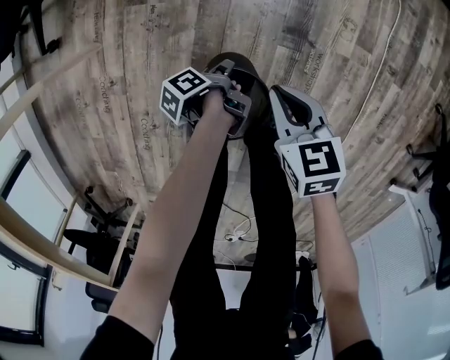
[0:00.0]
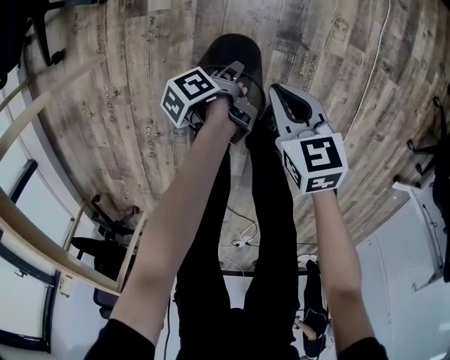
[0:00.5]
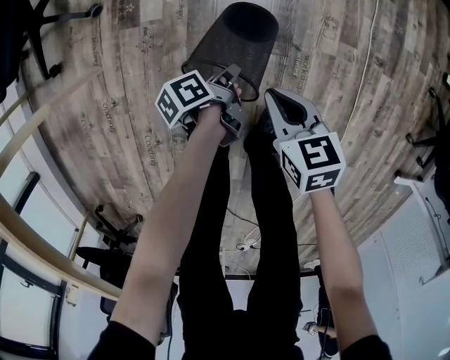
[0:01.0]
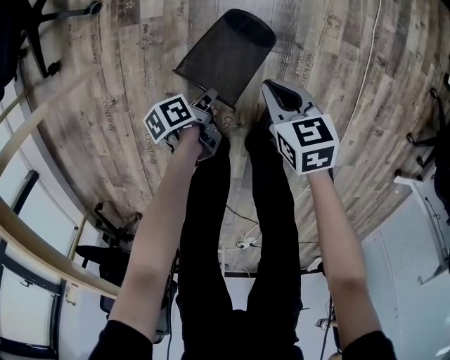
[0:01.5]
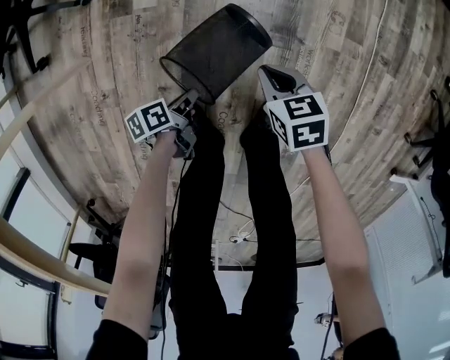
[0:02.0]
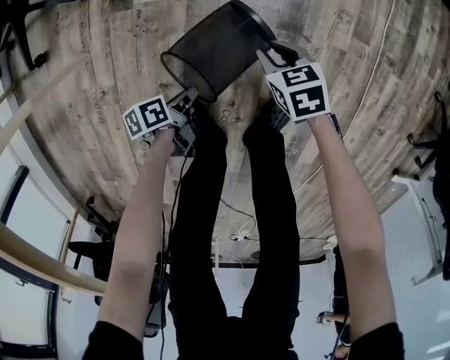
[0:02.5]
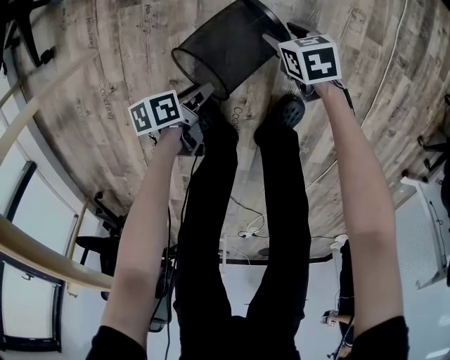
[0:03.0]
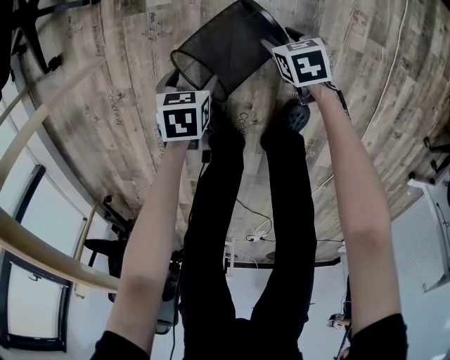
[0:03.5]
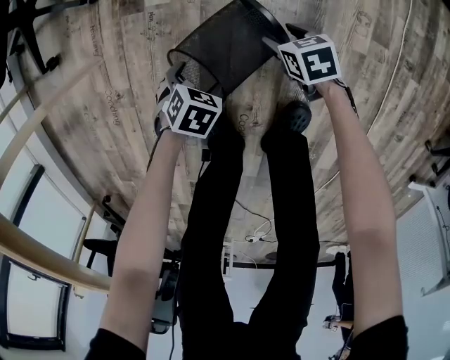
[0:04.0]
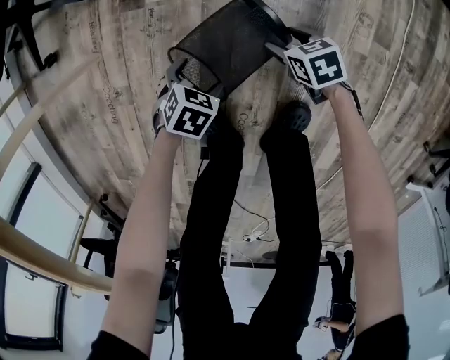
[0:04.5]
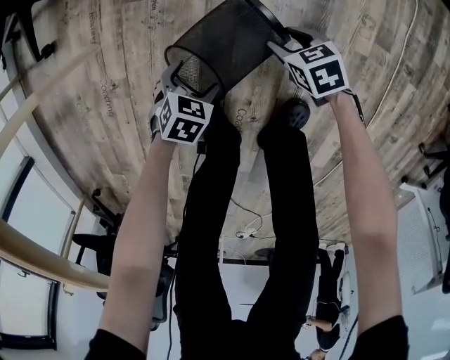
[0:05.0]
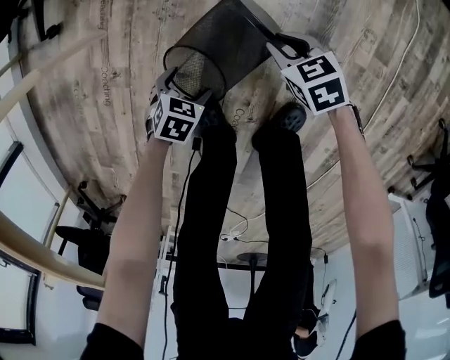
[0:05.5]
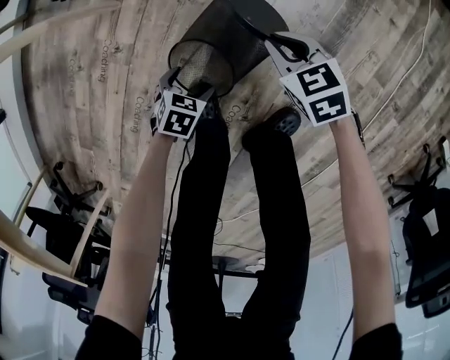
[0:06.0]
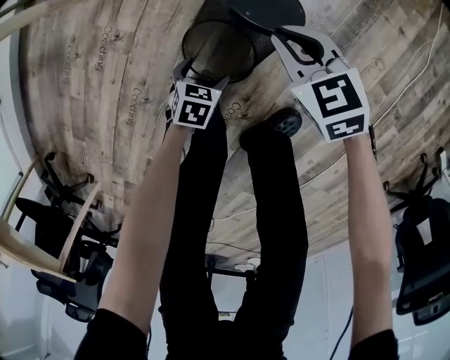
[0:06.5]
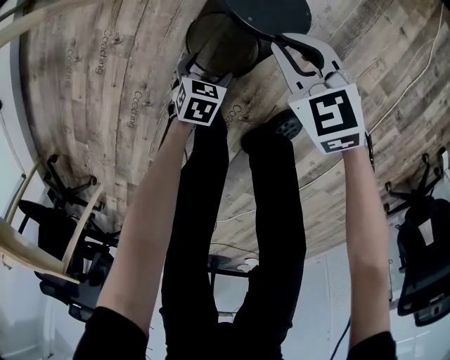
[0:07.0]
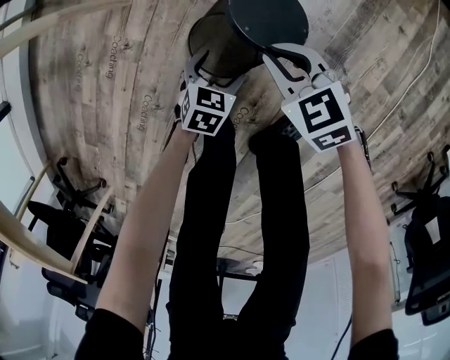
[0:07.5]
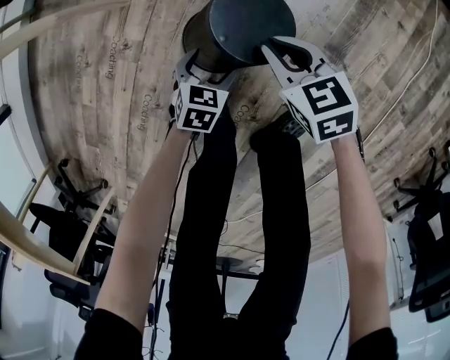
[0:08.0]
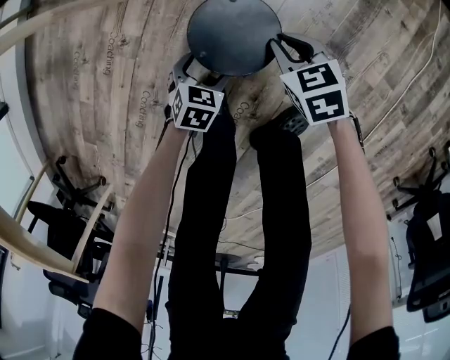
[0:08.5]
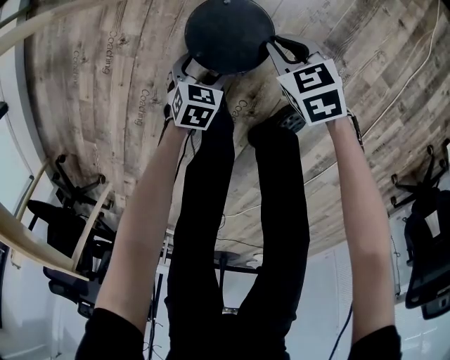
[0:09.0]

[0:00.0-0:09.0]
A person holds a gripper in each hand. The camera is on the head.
0:00.0 to 0:02.0: The left gripper travels to the left and backward by about 10 cm, and turns by about 40 degrees, while the right gripper is displaced downward by roughly 10 cm.
0:02.0 to 0:04.5: The right gripper heads downward, covering roughly 15 cm, and opens up, while the left gripper shifts by roughly 5 cm, rolls clockwise, seen from behind, by roughly 70 degrees, and opens.
0:04.5 to 0:07.0: The right gripper moves upward, about 15 cm, turns by roughly 40 degrees, and closes; the left gripper shifts by roughly 10 cm, and swivels roughly 30 degrees.
0:07.0 to 0:09.0: The right gripper shifts about 5 cm downward.

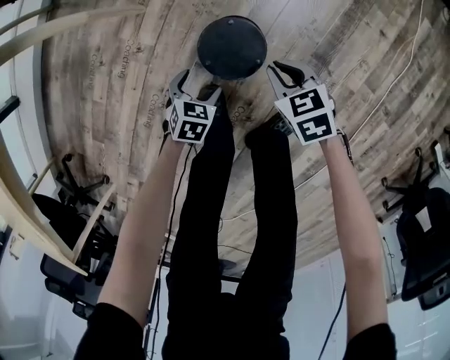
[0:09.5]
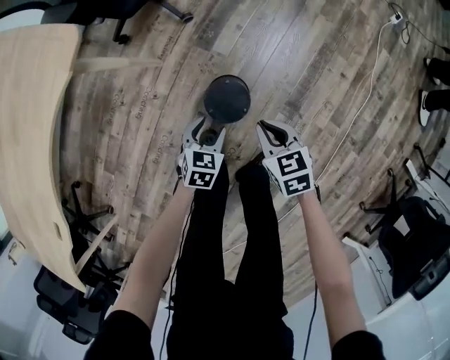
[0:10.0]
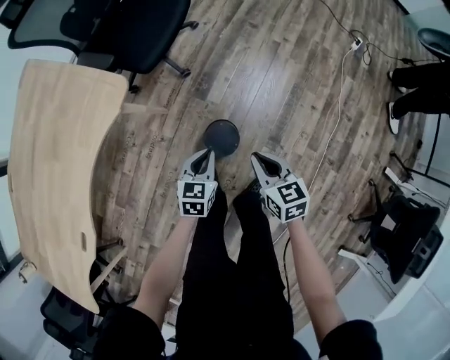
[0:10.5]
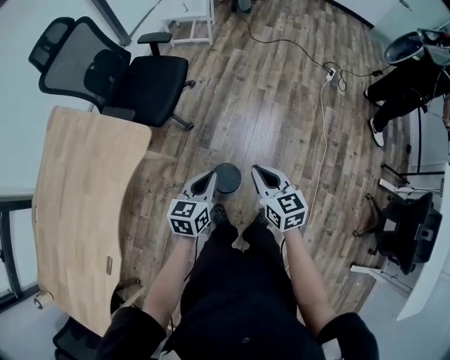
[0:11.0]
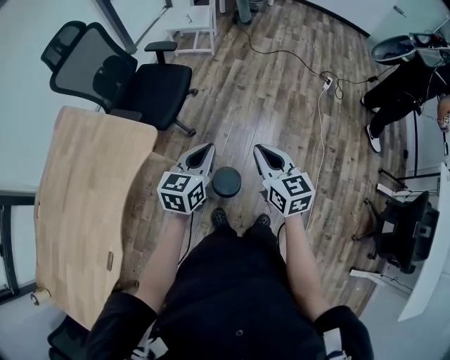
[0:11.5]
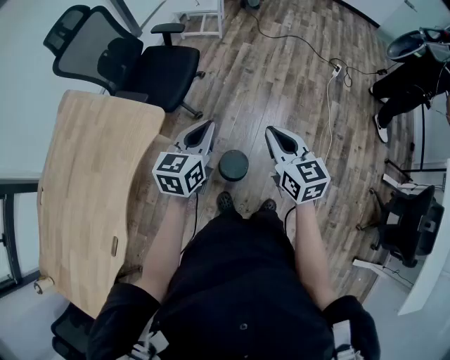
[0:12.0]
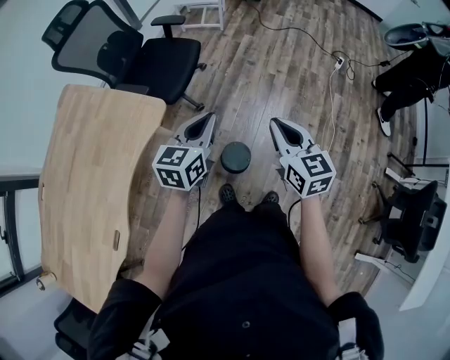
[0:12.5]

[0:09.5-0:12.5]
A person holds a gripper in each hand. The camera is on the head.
0:09.5 to 0:11.0: Both grippers move upward, some 50 cm. The right gripper rotates approximately 40 degrees. Meanwhile the left gripper angles its fingers upward, by about 40 degrees, and closes its fingers.
0:11.0 to 0:12.5: The grippers both shift upward by some 10 cm.

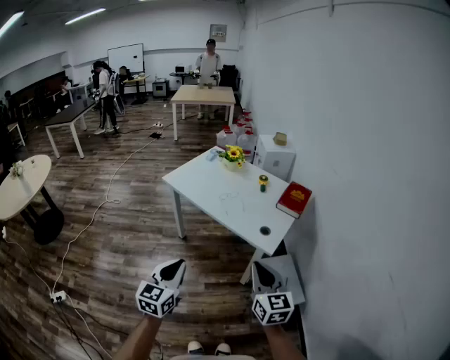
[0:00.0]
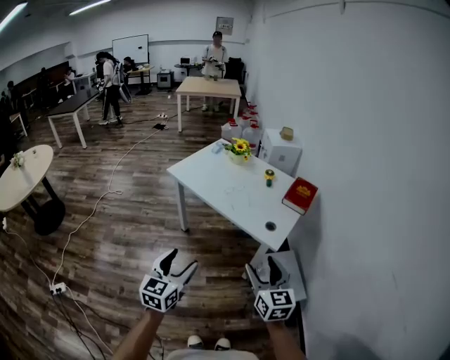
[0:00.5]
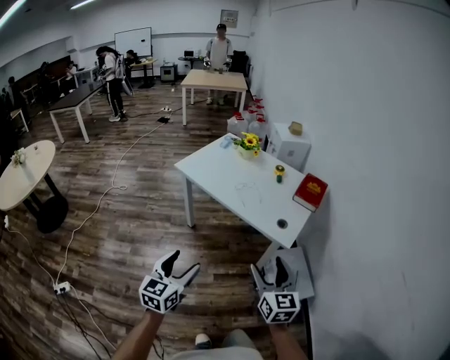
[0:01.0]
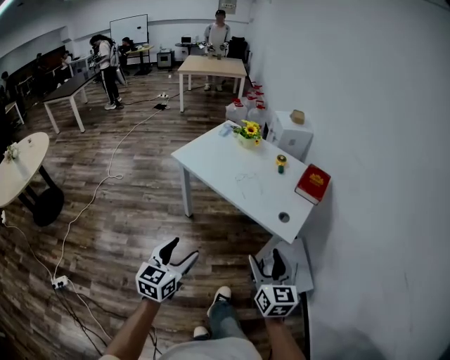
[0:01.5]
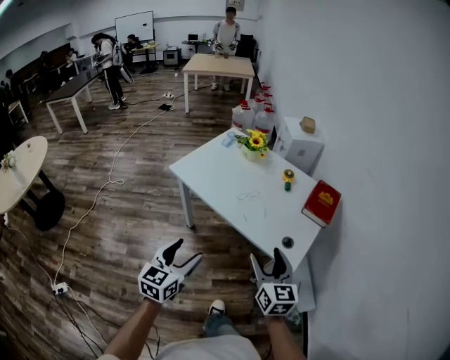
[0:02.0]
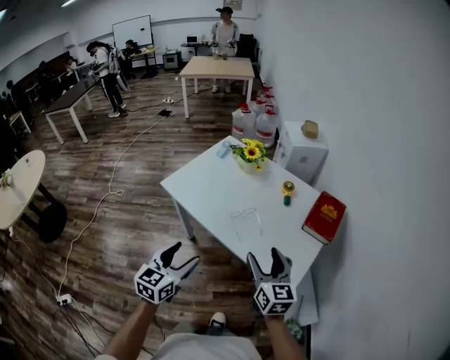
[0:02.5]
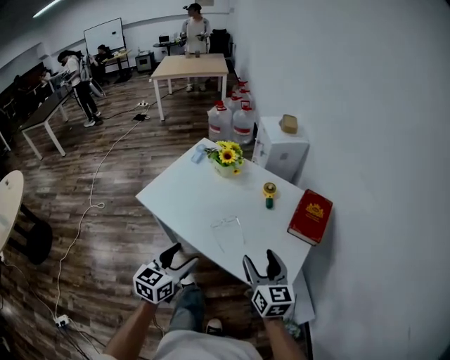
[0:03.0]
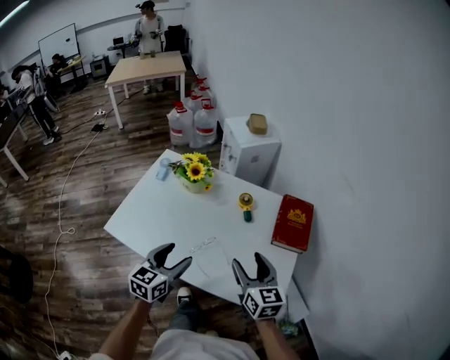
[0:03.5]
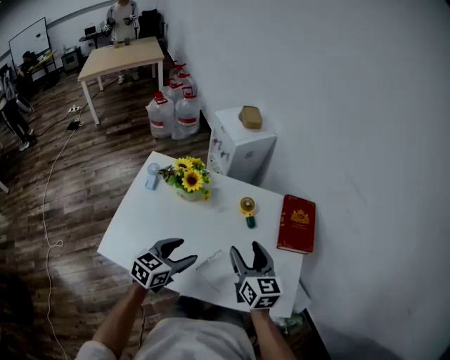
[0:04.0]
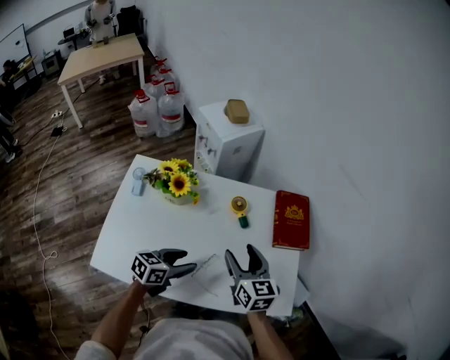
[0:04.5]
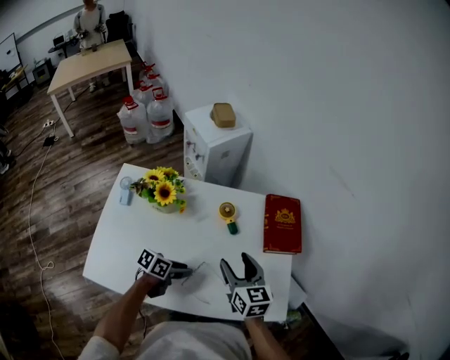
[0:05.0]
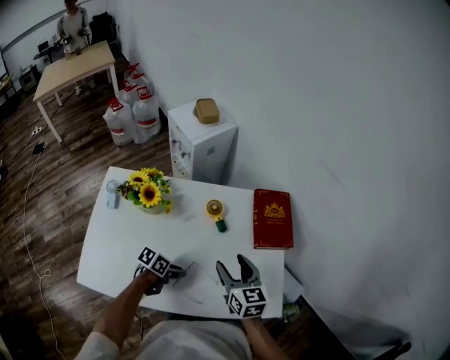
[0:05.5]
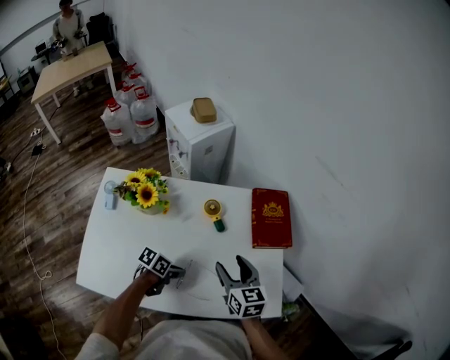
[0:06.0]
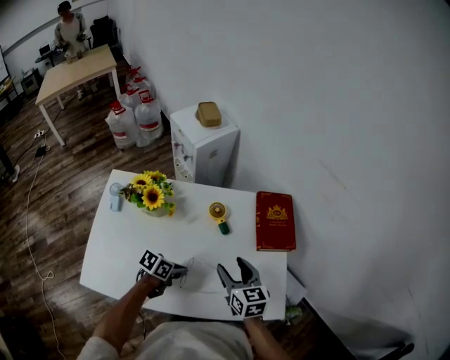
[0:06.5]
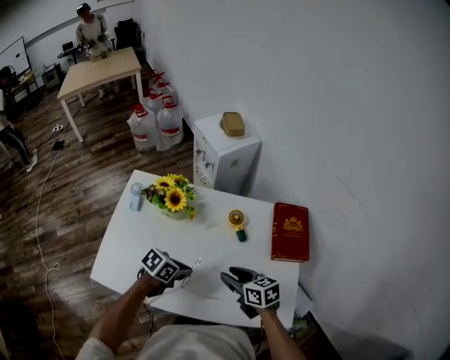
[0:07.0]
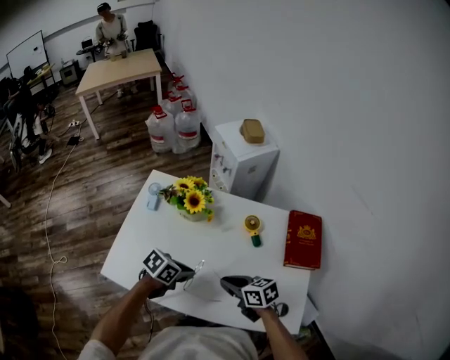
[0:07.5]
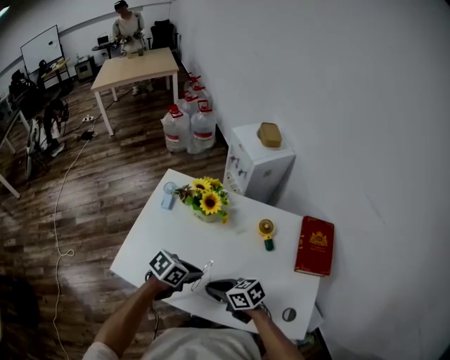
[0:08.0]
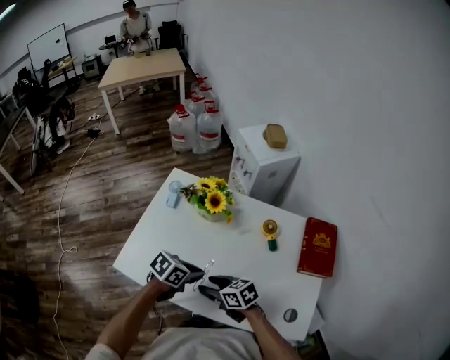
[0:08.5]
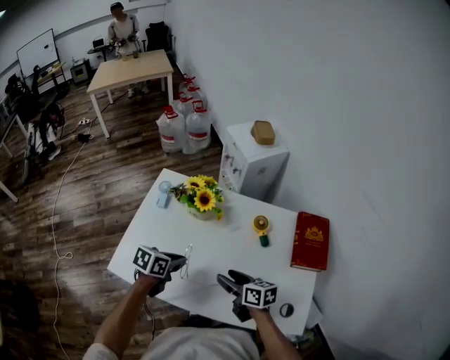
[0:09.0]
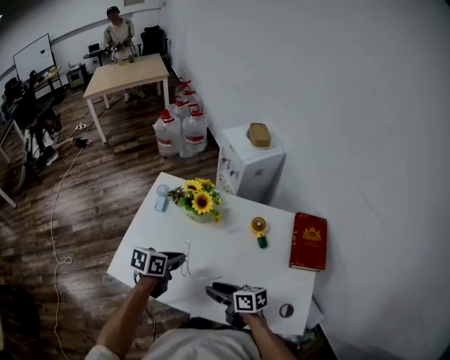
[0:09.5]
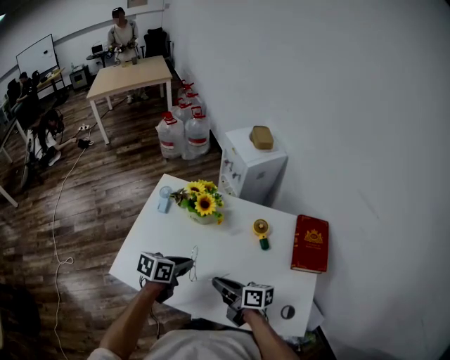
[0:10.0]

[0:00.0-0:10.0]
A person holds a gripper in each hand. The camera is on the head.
0:00.0 to 0:02.0: Both grippers move forward, some 25 cm. The right gripper opens up. Meanwhile the left gripper opens its fingers.
0:02.0 to 0:04.0: Both grippers are carried about 50 cm. The left gripper rotates approximately 40 degrees. The right gripper changes its angle by about 20 degrees.
0:04.0 to 0:06.0: The left gripper moves downward, some 20 cm, turns by about 50 degrees, and closes up, while the right gripper changes place by some 10 cm.
0:06.0 to 0:08.0: The right gripper shifts by approximately 25 cm, rotates some 60 degrees, and closes, while the left gripper changes place by approximately 15 cm.
0:08.0 to 0:10.0: The right gripper turns by roughly 30 degrees, and opens, then closes again; the left gripper moves approximately 5 cm, and changes its angle by some 20 degrees.

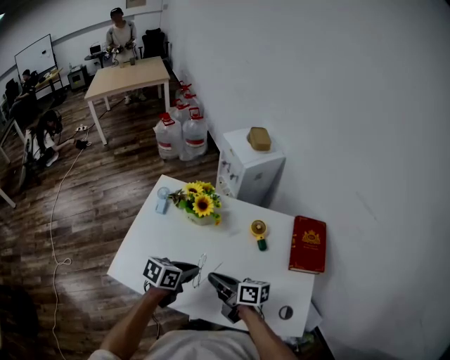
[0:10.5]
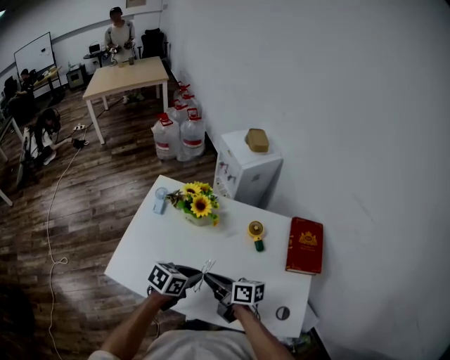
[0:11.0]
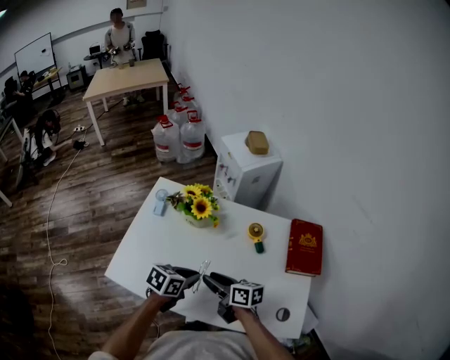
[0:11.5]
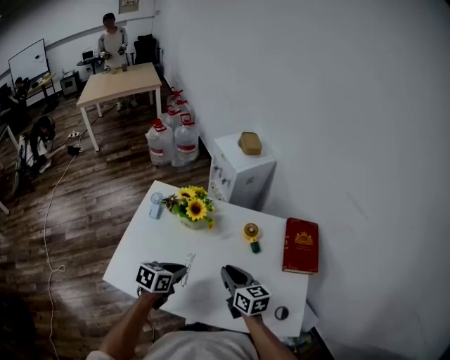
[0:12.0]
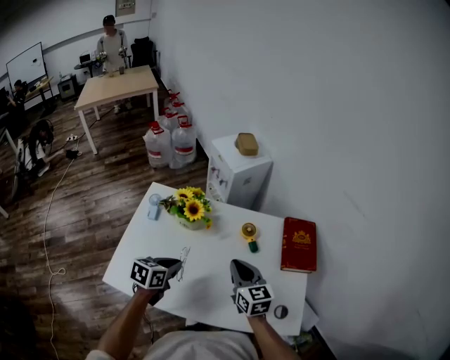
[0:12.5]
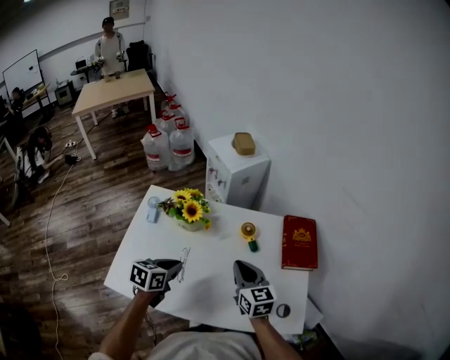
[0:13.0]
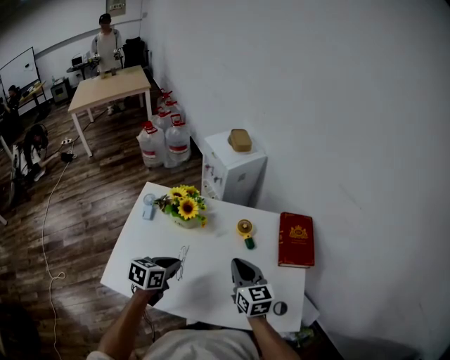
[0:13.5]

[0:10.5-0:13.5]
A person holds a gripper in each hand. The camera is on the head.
0:10.5 to 0:12.0: The right gripper is displaced to the right by approximately 5 cm, and swivels roughly 40 degrees.
0:12.0 to 0:13.5: The right gripper is displaced upward by about 5 cm.

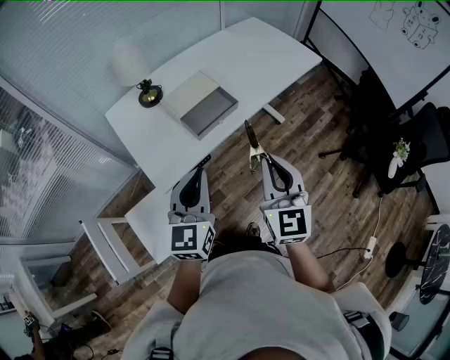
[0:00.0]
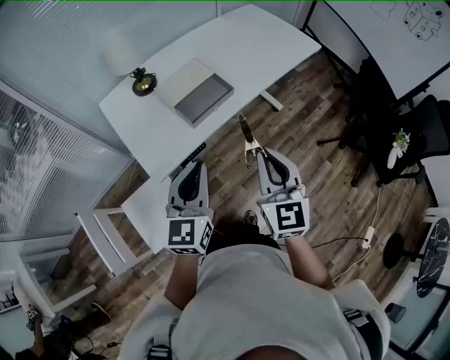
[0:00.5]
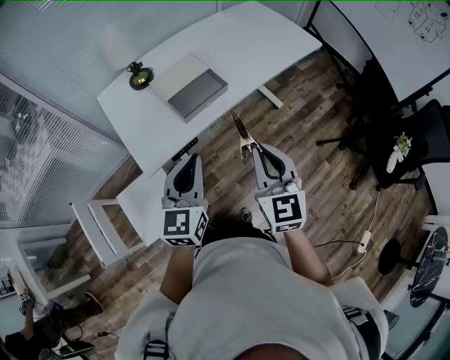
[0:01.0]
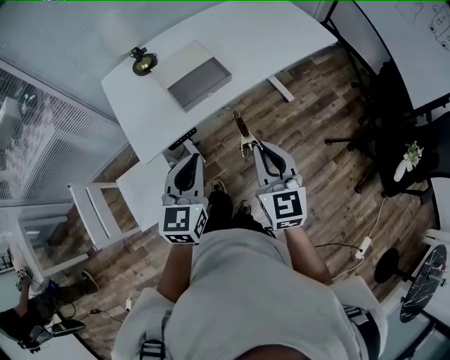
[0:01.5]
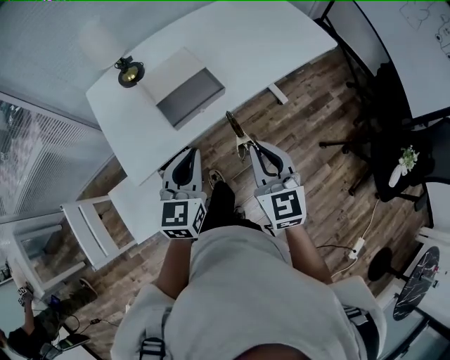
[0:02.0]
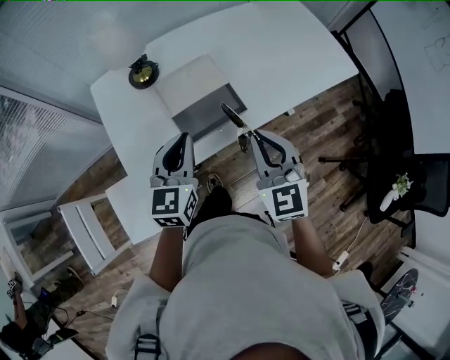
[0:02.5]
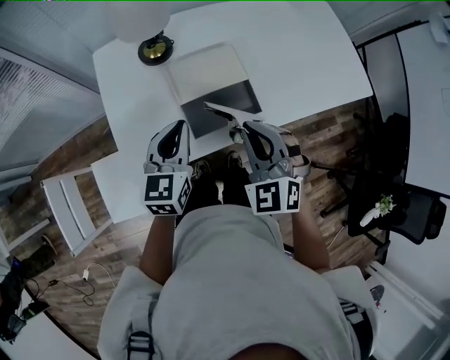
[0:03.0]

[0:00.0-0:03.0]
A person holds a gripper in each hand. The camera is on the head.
0:00.0 to 0:01.5: The right gripper travels downward and to the right by approximately 10 cm. Meanwhile the left gripper heads to the right and downward, covering roughly 10 cm.
0:01.5 to 0:03.0: The left gripper shifts some 25 cm forward. Meanwhile the right gripper shifts about 25 cm forward and to the left, and twists about 50 degrees counterclockwise, seen from behind.
